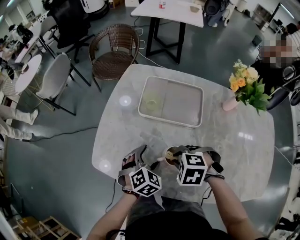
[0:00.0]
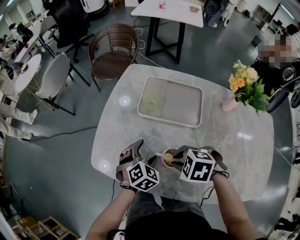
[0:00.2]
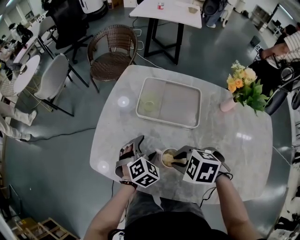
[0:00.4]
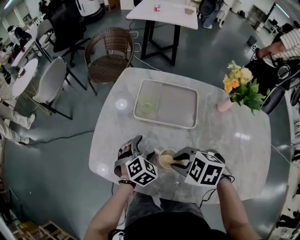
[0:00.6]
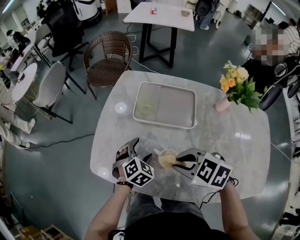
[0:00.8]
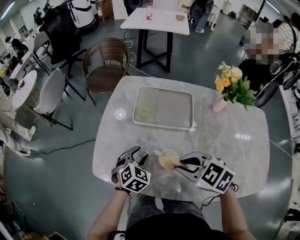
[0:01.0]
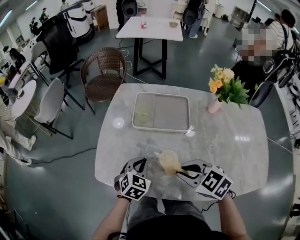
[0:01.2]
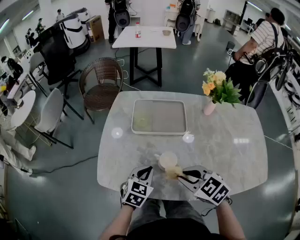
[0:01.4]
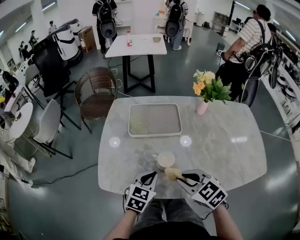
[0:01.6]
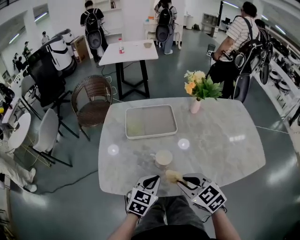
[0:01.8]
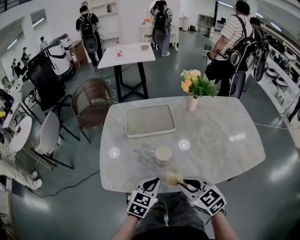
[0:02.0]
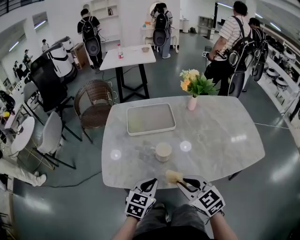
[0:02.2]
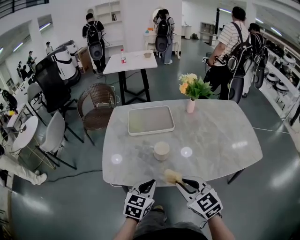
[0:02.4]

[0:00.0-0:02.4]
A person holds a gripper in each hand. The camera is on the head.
0:00.0 to 0:01.2: The right gripper is displaced upward by some 10 cm, and changes its angle by about 40 degrees, while the left gripper closes its fingers.
0:01.2 to 0:02.4: The left gripper ends up some 20 cm from where it was, and changes its angle by approximately 20 degrees, while the right gripper changes place by some 15 cm, and swivels some 40 degrees.

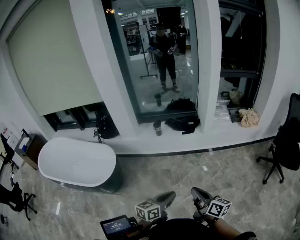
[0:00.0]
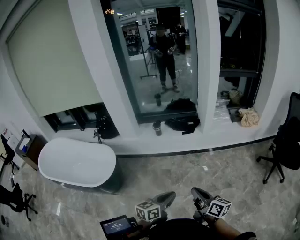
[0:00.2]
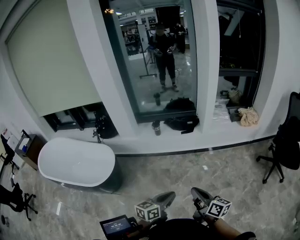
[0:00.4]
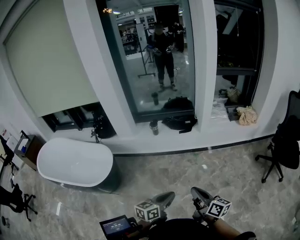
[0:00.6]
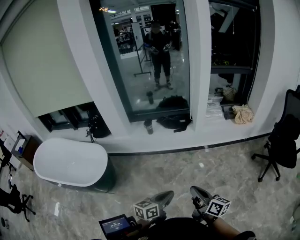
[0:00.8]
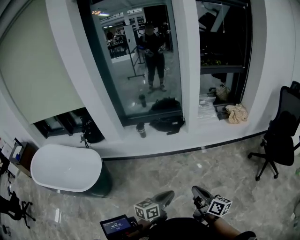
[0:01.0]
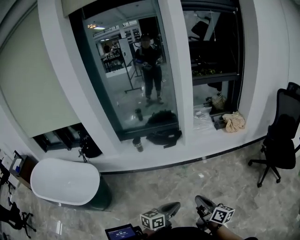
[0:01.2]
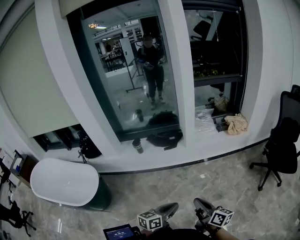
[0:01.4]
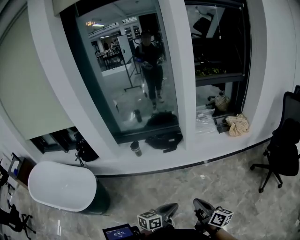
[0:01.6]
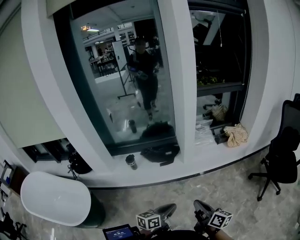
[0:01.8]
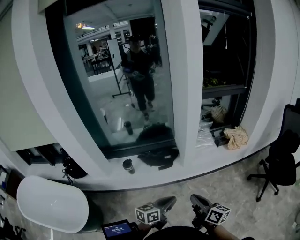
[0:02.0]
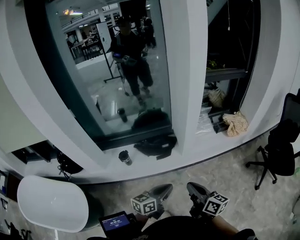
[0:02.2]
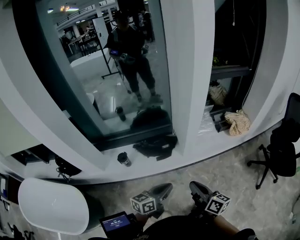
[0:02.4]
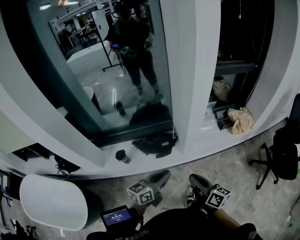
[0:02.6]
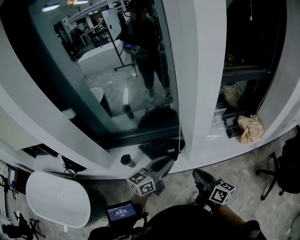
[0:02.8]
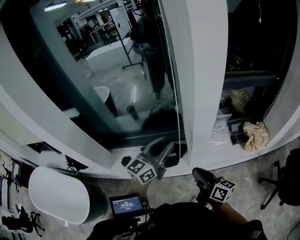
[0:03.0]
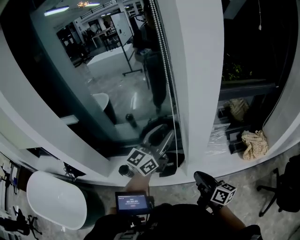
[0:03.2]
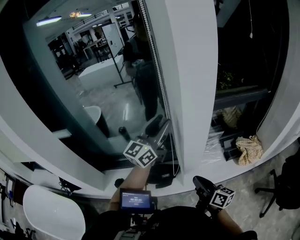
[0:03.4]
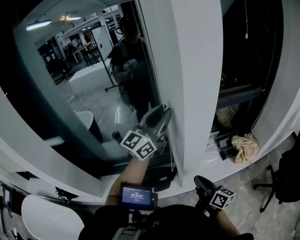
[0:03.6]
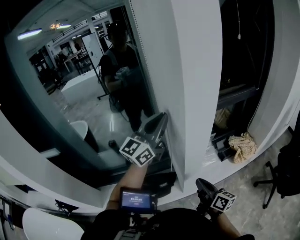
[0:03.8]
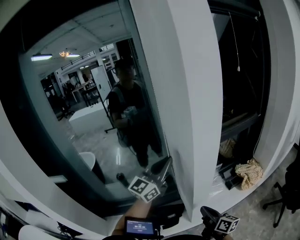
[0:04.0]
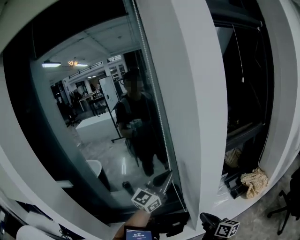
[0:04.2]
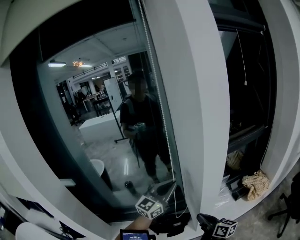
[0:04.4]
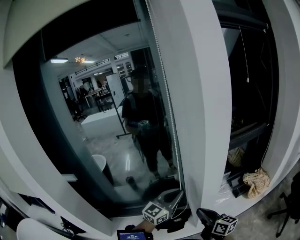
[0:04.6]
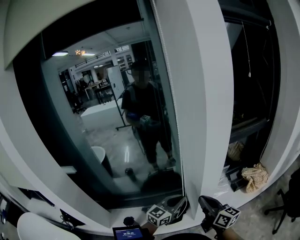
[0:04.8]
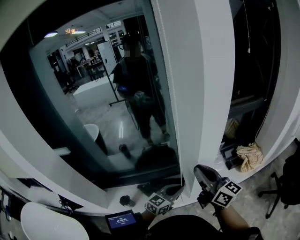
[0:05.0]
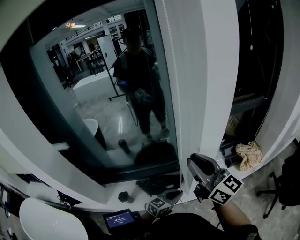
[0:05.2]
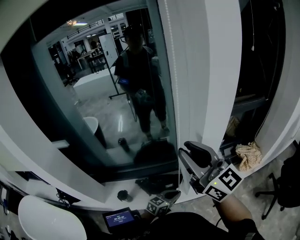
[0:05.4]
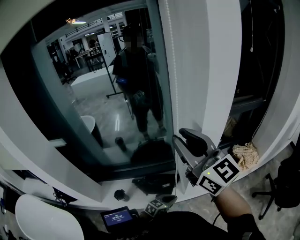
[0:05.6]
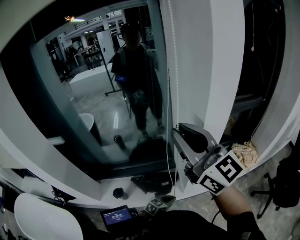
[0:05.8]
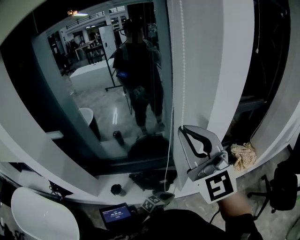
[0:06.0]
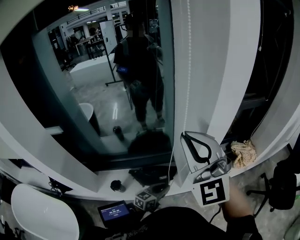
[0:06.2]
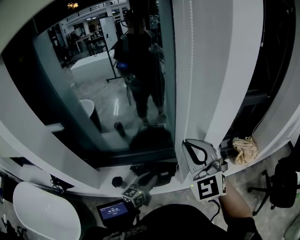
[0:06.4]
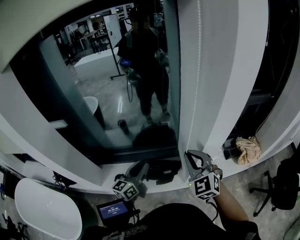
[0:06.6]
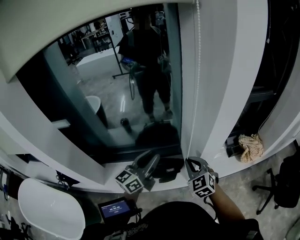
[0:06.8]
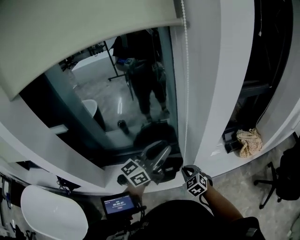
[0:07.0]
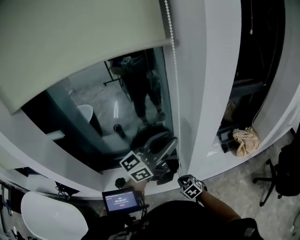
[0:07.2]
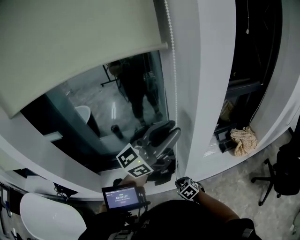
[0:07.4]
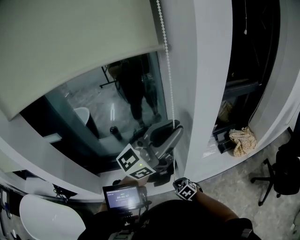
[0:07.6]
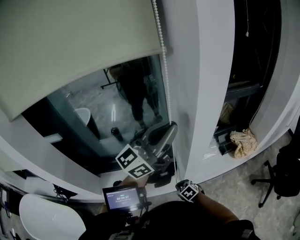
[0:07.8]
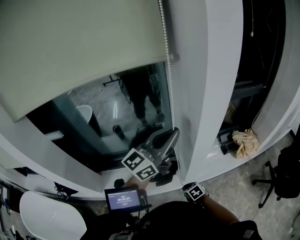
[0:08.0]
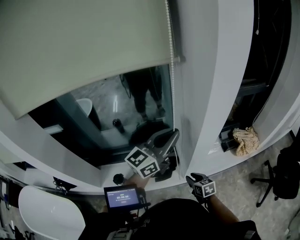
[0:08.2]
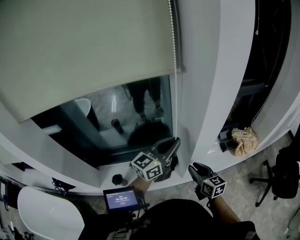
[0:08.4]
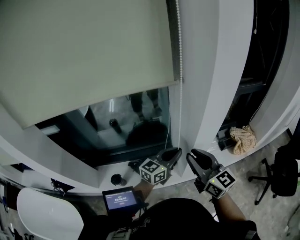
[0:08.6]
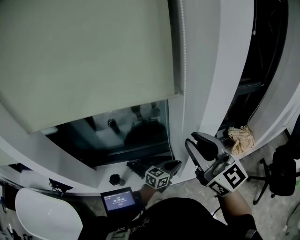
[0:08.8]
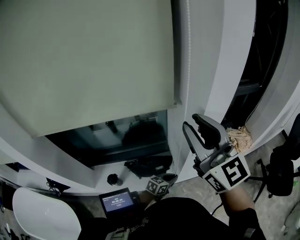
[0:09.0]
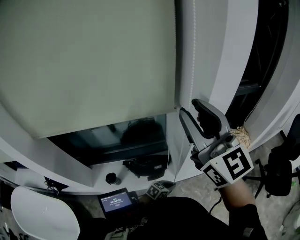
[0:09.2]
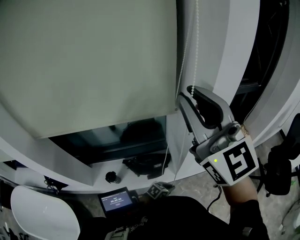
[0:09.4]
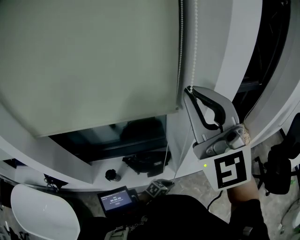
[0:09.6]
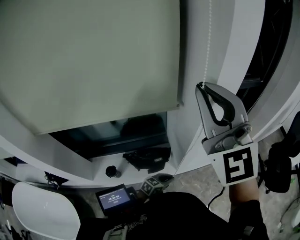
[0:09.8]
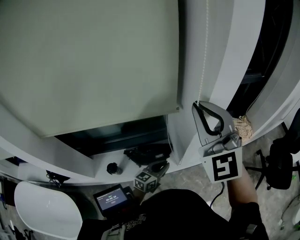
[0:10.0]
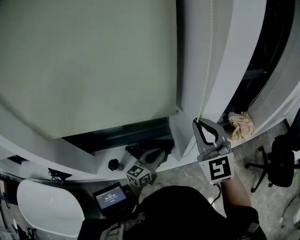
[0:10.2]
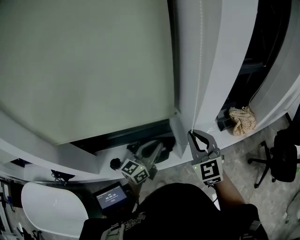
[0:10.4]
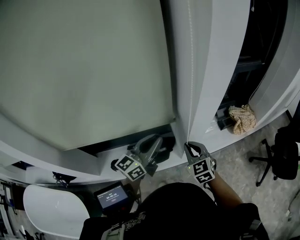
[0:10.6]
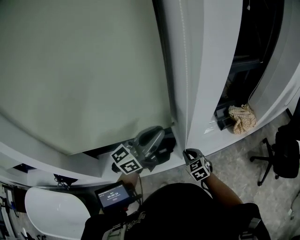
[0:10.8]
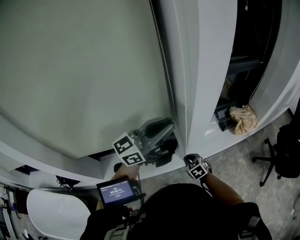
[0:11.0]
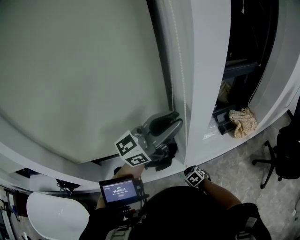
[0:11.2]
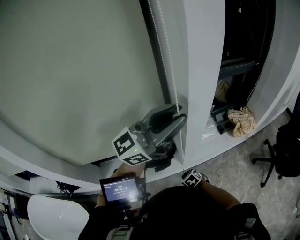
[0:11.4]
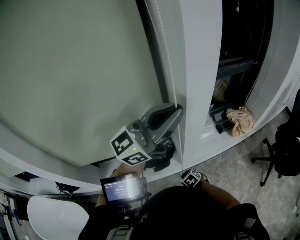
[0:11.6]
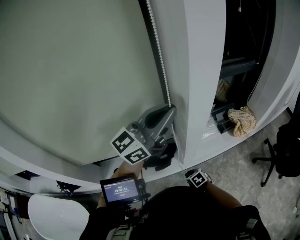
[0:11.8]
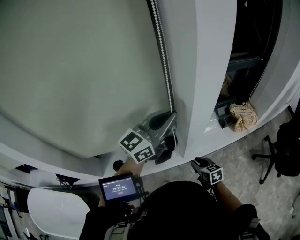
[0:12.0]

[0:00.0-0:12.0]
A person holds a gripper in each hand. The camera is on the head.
0:00.0 to 0:01.6: The two grippers go some 20 cm to the right and forward.
0:01.6 to 0:03.0: The two grippers travel together, forward, about 50 cm. The left gripper rotates approximately 40 degrees, and opens.
0:03.0 to 0:04.4: The right gripper moves forward, roughly 10 cm. Meanwhile the left gripper goes roughly 15 cm forward and upward, changes its angle by some 20 degrees, and closes up.
0:04.4 to 0:06.0: The left gripper moves downward and backward, approximately 40 cm, and tilts its fingers roughly 40 degrees downward. The right gripper heads upward, covering some 35 cm, rolls counterclockwise, seen from behind, by some 70 degrees, and opens, then closes once more.
0:06.0 to 0:07.6: The right gripper goes roughly 60 cm downward, and tips its fingers downward by roughly 70 degrees. Meanwhile the left gripper shifts about 50 cm upward, and tilts its fingers about 60 degrees upward.
0:07.6 to 0:09.0: The right gripper travels upward by some 50 cm, tilts its fingers some 70 degrees upward, and opens. Meanwhile the left gripper moves downward, approximately 50 cm, and tips its fingers downward by about 60 degrees.
0:09.0 to 0:10.4: The left gripper goes some 25 cm upward and to the left, and points its fingers roughly 30 degrees further upward. Meanwhile the right gripper goes about 20 cm downward, swivels about 30 degrees, and closes its fingers.
0:10.4 to 0:12.0: The left gripper moves upward, approximately 15 cm. Meanwhile the right gripper shifts about 25 cm downward, swivels some 50 degrees, and opens.

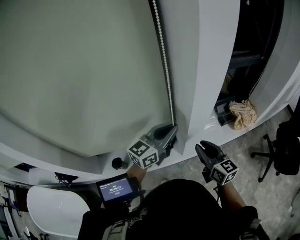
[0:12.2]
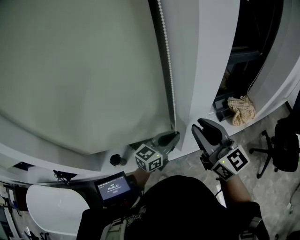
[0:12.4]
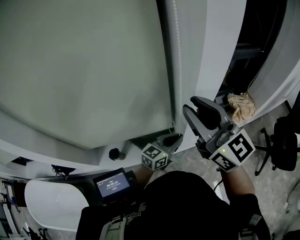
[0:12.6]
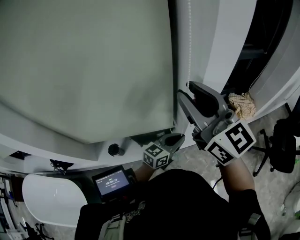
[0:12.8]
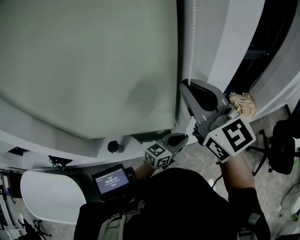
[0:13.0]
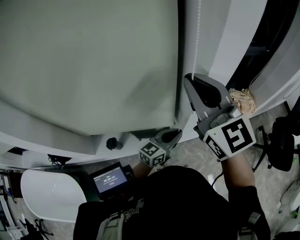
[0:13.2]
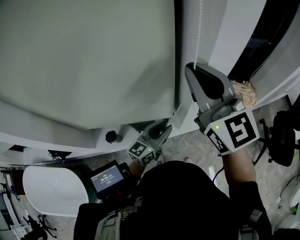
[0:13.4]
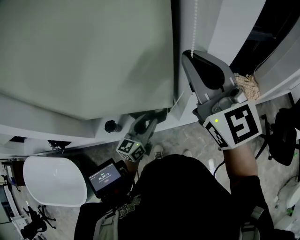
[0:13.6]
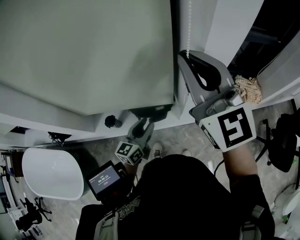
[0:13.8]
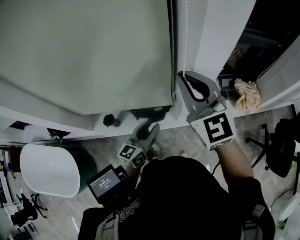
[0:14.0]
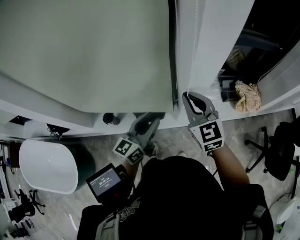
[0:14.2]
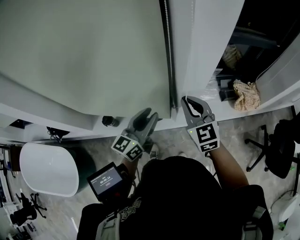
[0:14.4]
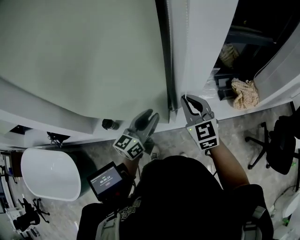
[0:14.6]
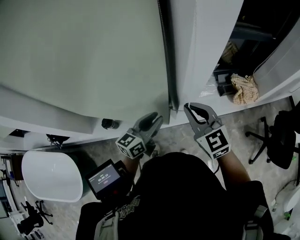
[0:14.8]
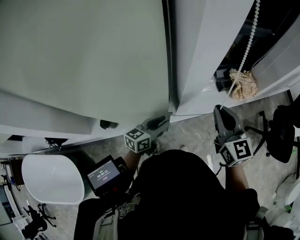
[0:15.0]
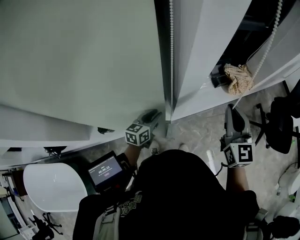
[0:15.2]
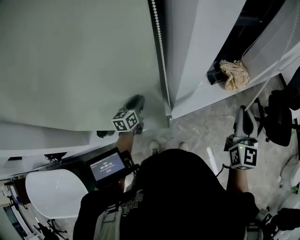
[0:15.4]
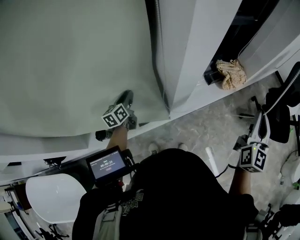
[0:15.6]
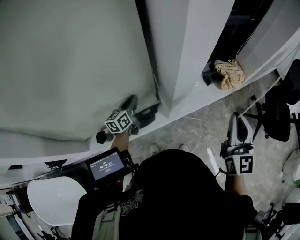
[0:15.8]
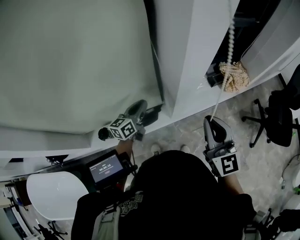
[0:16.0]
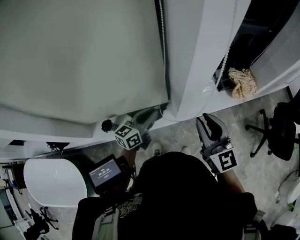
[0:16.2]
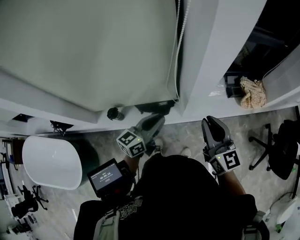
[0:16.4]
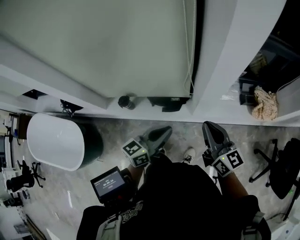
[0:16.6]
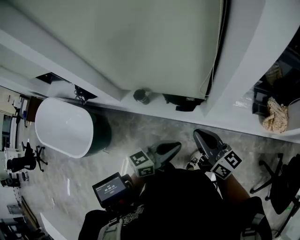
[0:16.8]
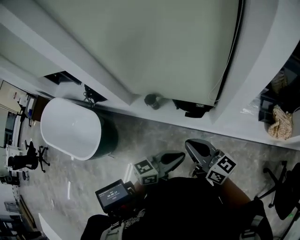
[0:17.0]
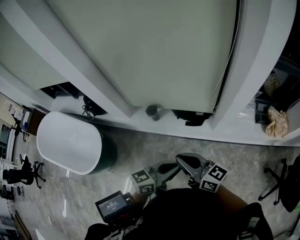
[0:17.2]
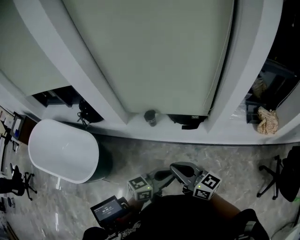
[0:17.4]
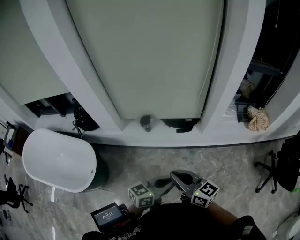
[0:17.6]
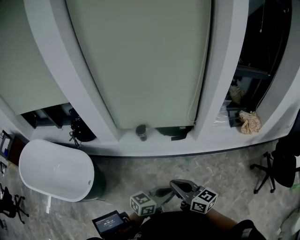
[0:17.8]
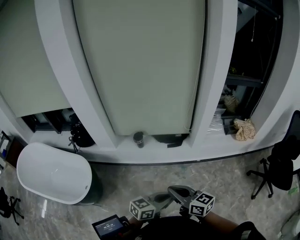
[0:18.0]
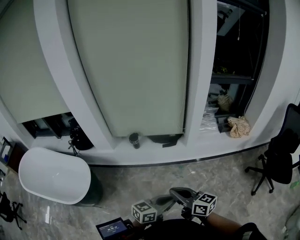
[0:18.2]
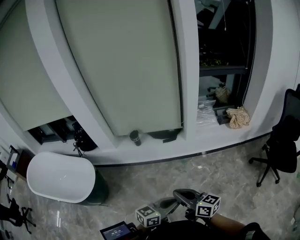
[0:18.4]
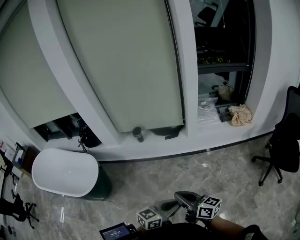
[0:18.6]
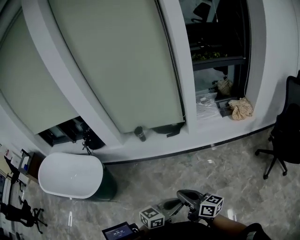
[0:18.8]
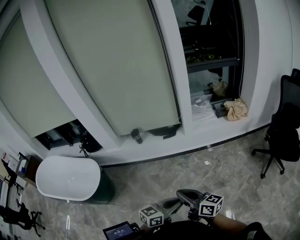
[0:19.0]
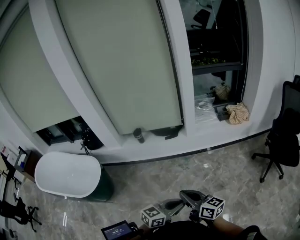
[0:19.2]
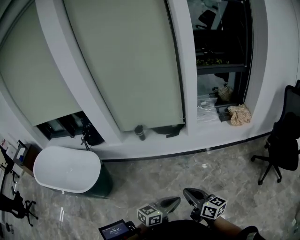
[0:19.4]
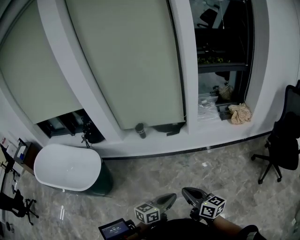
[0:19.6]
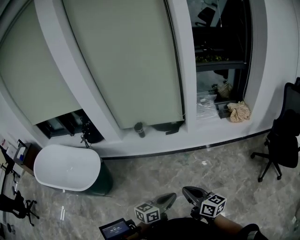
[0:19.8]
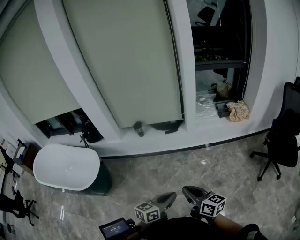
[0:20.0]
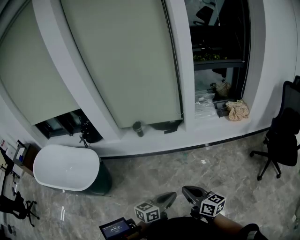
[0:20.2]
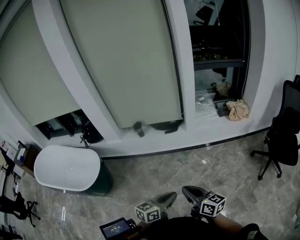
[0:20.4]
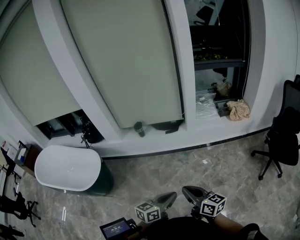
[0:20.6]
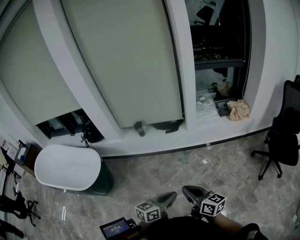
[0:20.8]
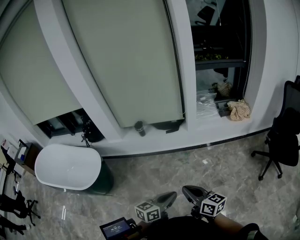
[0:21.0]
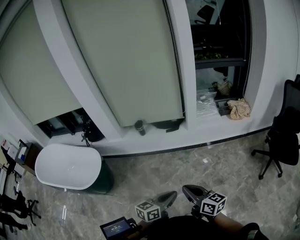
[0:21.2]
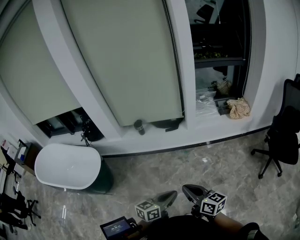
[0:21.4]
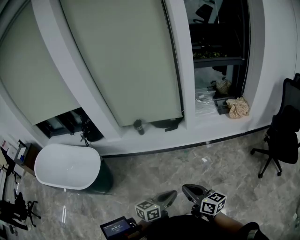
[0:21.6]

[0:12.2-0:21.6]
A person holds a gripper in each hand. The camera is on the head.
0:12.2 to 0:13.8: The right gripper is displaced upward by about 25 cm, swivels approximately 40 degrees, and closes up; the left gripper moves downward, to the left and backward, roughly 20 cm, swivels some 30 degrees, and opens.
0:13.8 to 0:15.4: The left gripper changes place by roughly 15 cm. The right gripper changes place by some 30 cm, and swivels some 50 degrees.
0:15.4 to 0:17.0: The left gripper moves about 35 cm, and closes. The right gripper shifts by some 35 cm, and changes its angle by approximately 90 degrees.
0:17.0 to 0:18.4: Both grippers travel together backward, some 40 cm.
0:18.4 to 0:20.0: The right gripper shifts some 10 cm backward and to the right. The left gripper moves backward, approximately 5 cm.
0:20.0 to 0:21.6: Neither gripper changes place.
